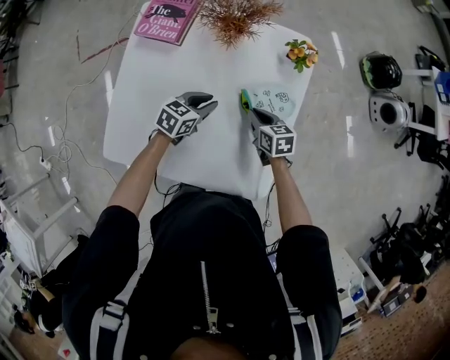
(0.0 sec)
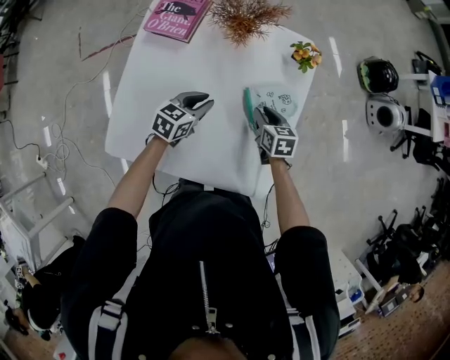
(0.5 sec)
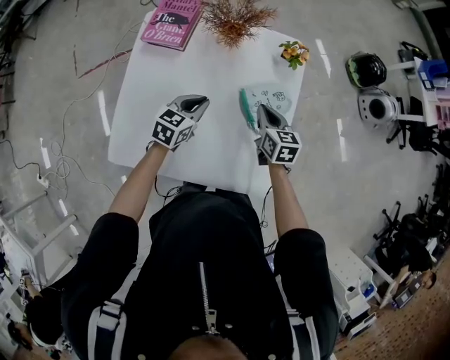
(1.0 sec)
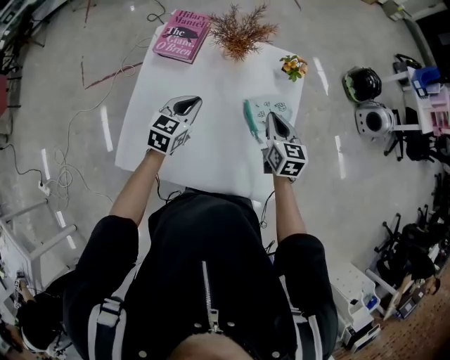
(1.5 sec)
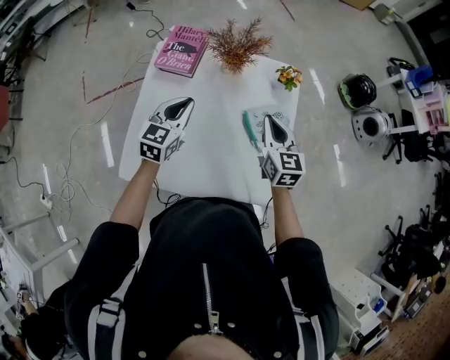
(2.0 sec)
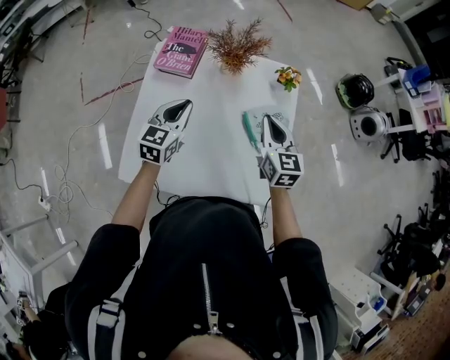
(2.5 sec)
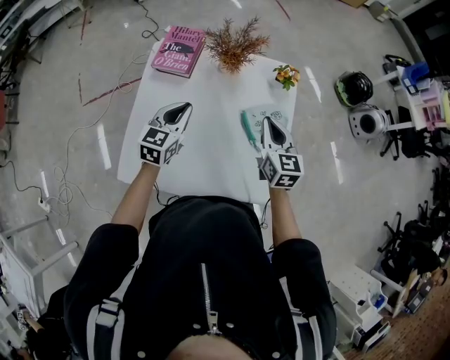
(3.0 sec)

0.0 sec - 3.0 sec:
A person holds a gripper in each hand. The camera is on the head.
0.0 sec - 1.5 sec: The right gripper is displaced upward by about 15 cm, swivels roughly 30 degrees, and opens and closes again; the left gripper is displaced upward and to the left by approximately 15 cm, and swivels some 20 degrees.
1.5 sec - 3.0 sec: The left gripper shifts by approximately 5 cm; the right gripper shifts about 5 cm upward.

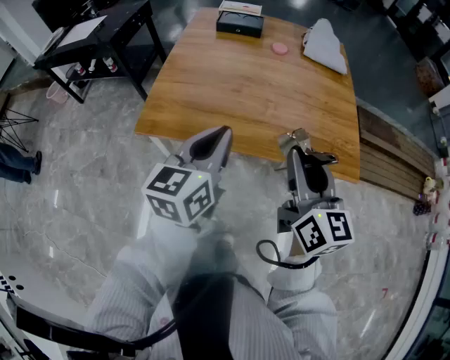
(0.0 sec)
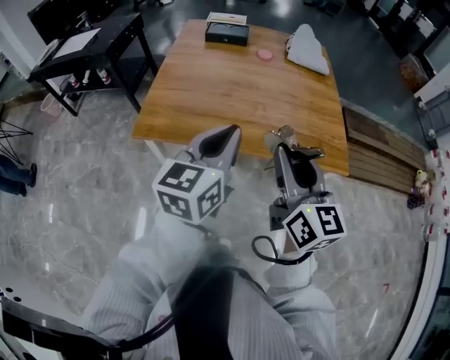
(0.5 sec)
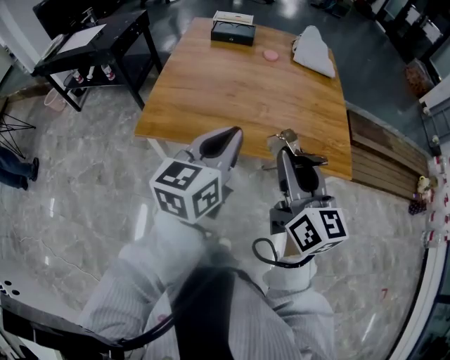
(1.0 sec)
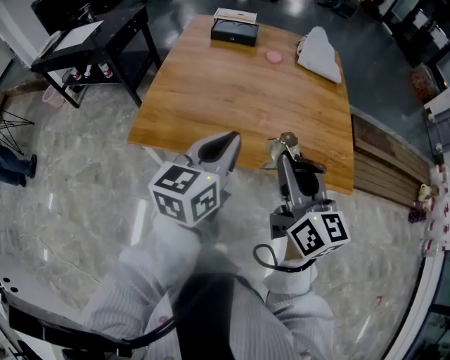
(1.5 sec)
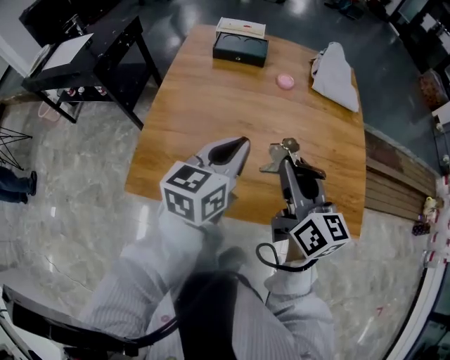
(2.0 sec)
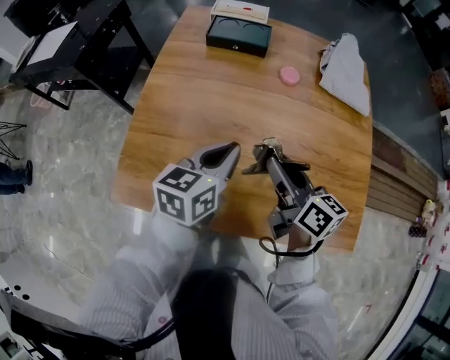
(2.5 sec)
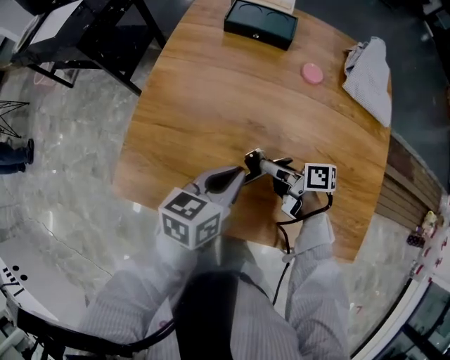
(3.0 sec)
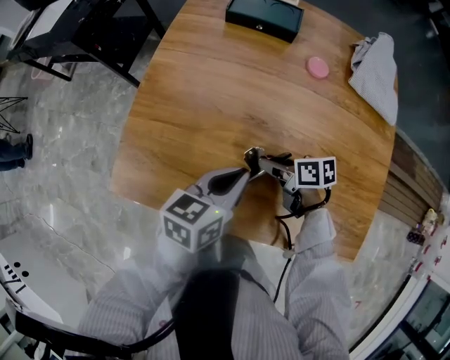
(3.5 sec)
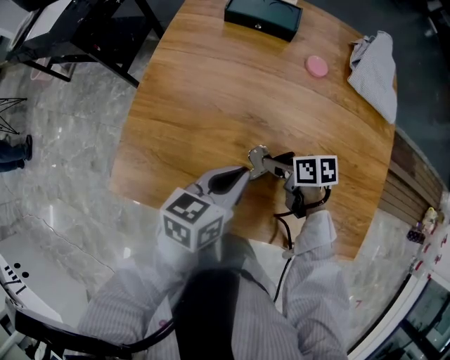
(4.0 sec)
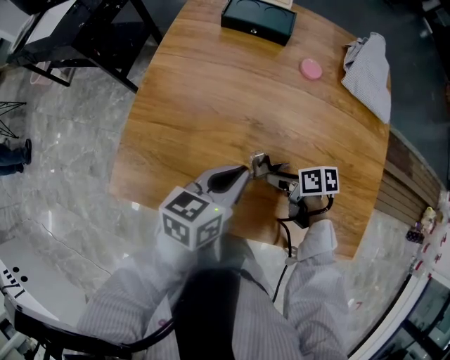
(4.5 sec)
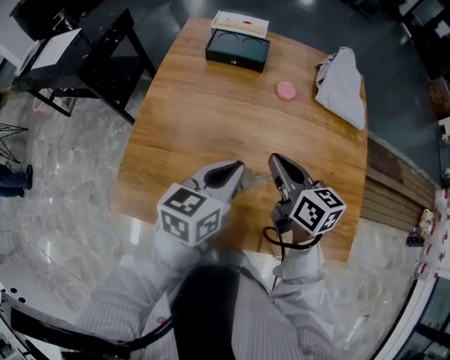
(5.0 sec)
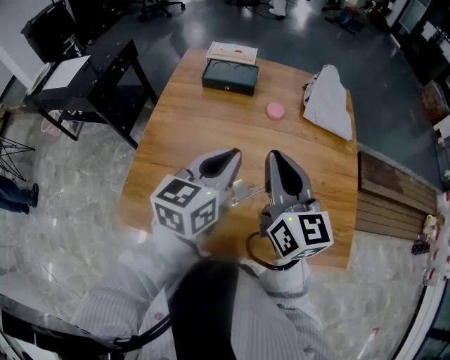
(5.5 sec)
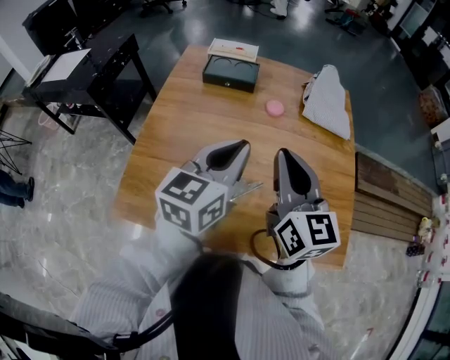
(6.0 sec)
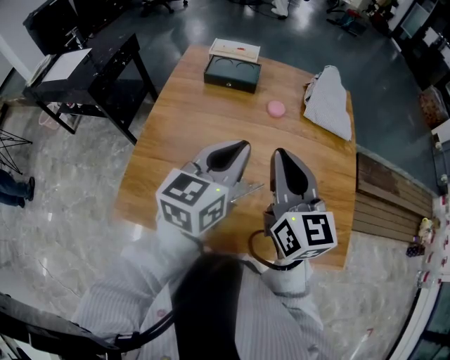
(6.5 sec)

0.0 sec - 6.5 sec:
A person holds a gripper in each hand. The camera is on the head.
0.0 sec - 2.0 sec: The grippers both shift forward by about 20 cm.
2.0 sec - 4.5 sec: The left gripper shifts some 15 cm downward, while the right gripper moves downward, roughly 30 cm, points its fingers some 40 degrees further downward, and opens up.
4.5 sec - 6.5 sec: The left gripper is displaced upward by some 20 cm, and turns by approximately 30 degrees. Meanwhile the right gripper is displaced upward by roughly 35 cm, tips its fingers upward by some 40 degrees, and closes up.

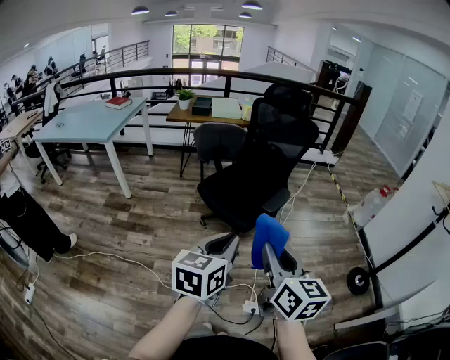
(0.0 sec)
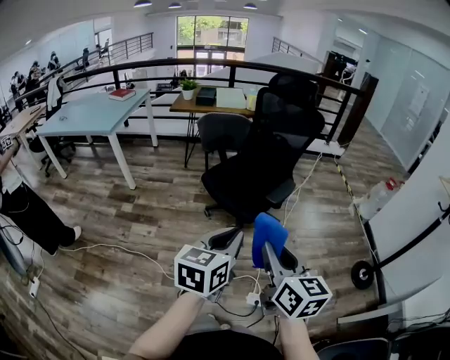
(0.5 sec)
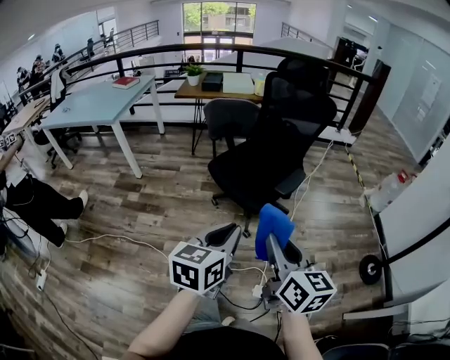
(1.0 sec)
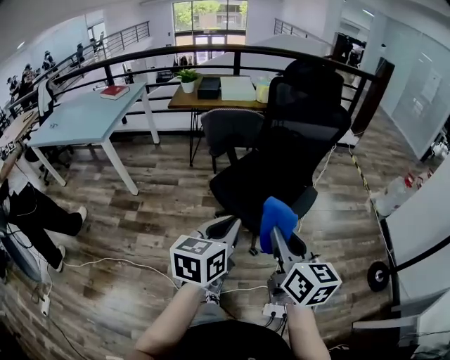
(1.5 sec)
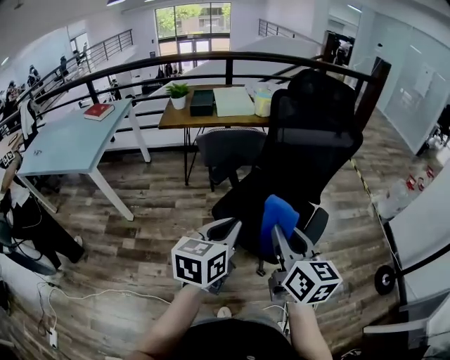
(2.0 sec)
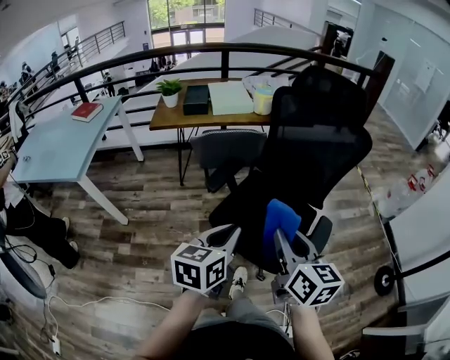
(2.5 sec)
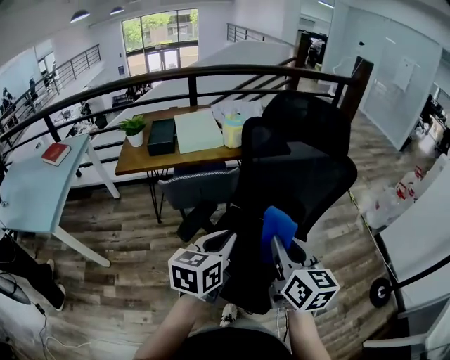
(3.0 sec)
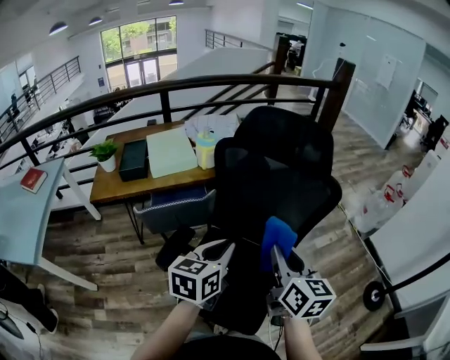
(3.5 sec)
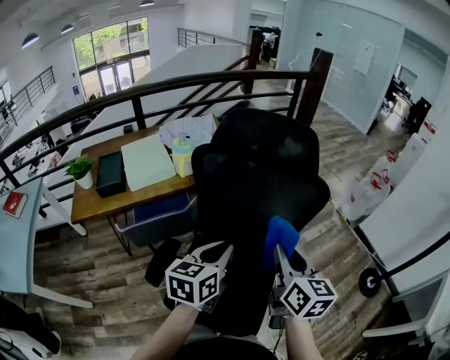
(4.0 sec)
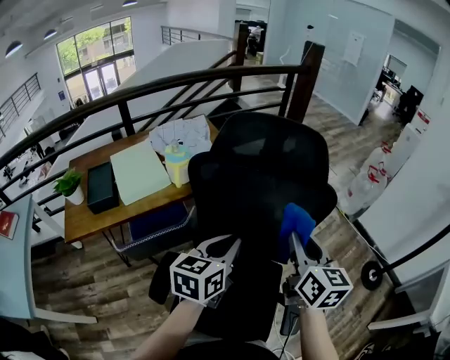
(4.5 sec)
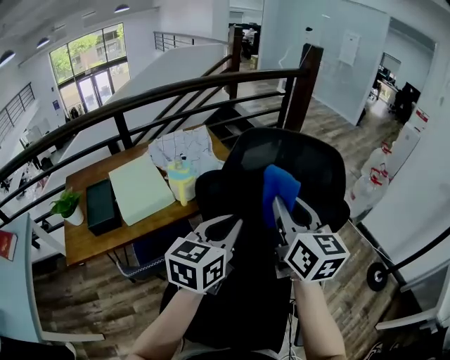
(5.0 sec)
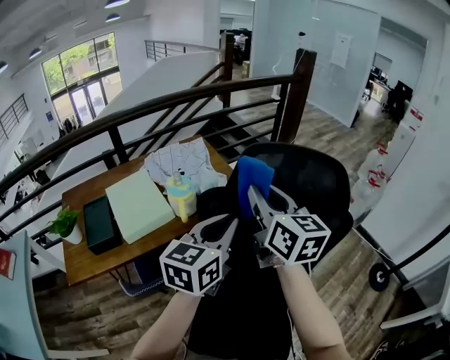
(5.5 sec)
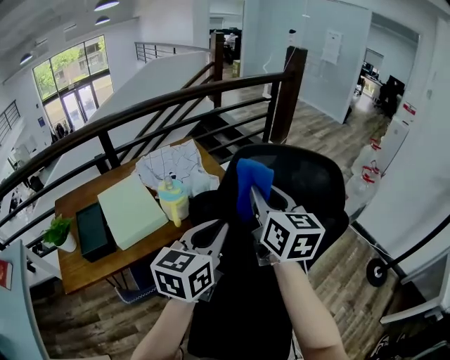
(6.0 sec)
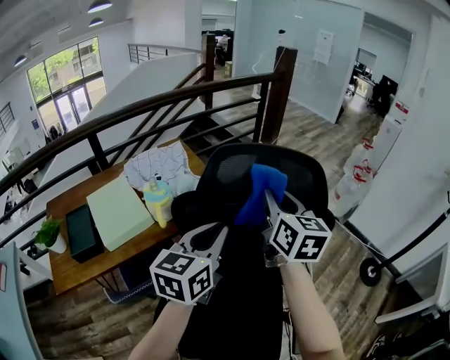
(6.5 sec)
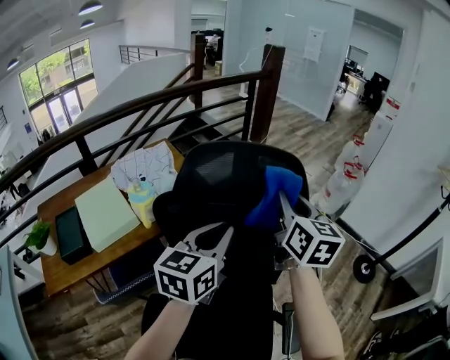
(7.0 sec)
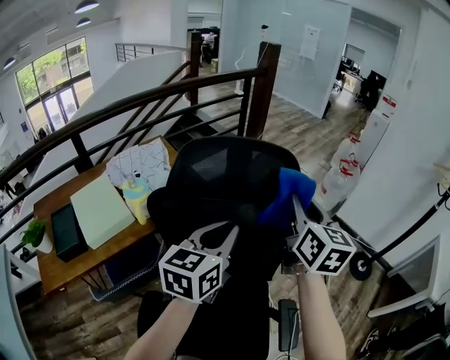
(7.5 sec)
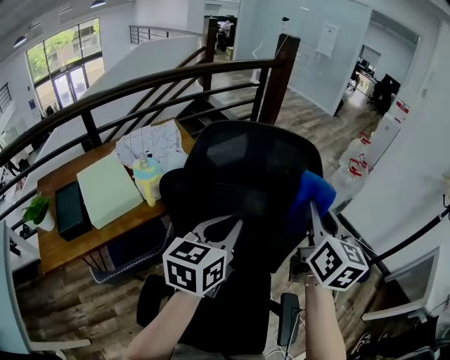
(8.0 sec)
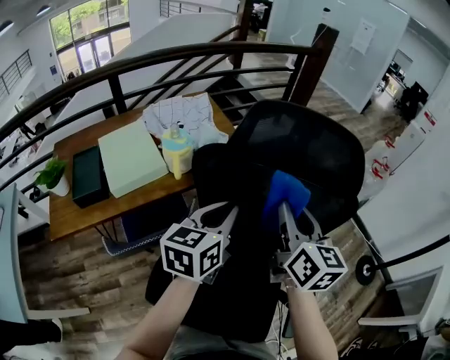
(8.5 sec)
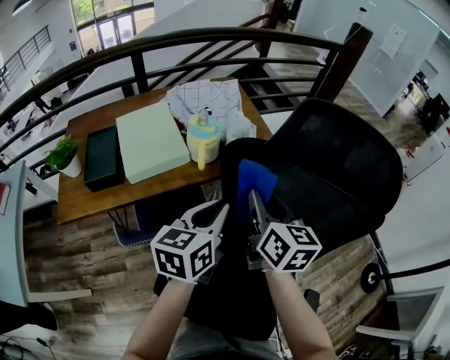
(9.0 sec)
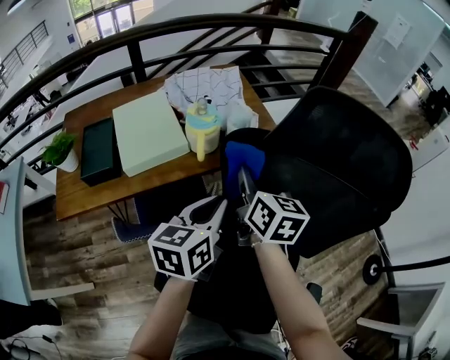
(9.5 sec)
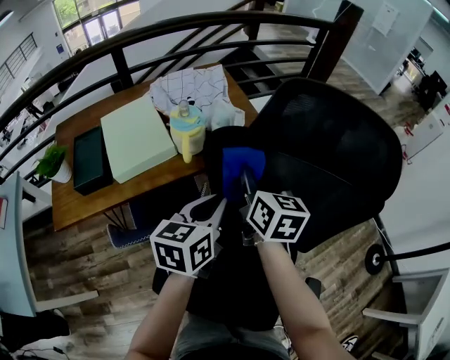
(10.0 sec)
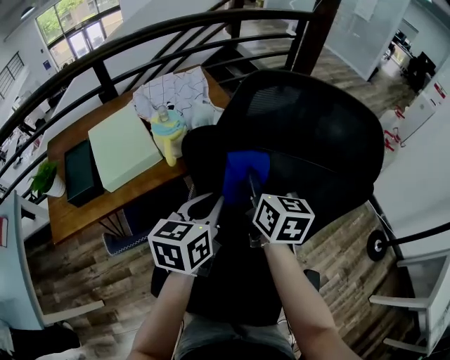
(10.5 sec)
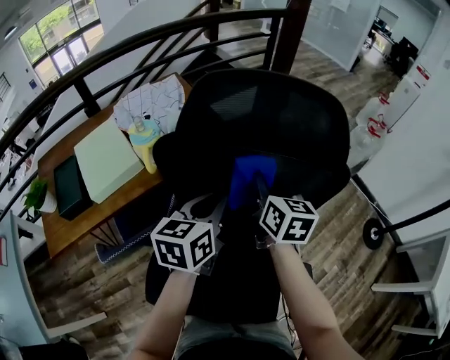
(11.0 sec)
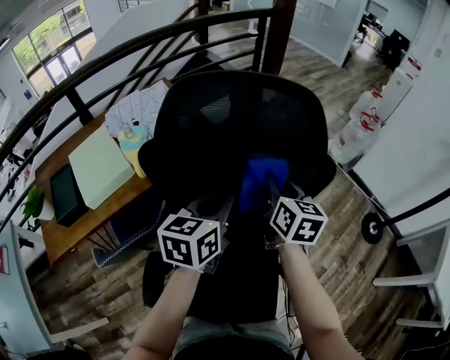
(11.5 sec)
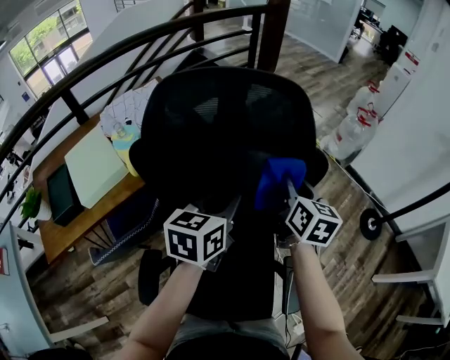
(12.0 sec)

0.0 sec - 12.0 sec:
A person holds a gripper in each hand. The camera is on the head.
0.0 sec - 2.0 sec: Both grippers travel together forward and to the left, about 35 cm.
2.0 sec - 4.0 sec: Both grippers move forward, about 40 cm. The left gripper changes its angle by about 20 degrees, while the right gripper rotates approximately 30 degrees.
4.0 sec - 6.0 sec: The grippers both shift forward, to the left and upward by about 30 cm.
6.0 sec - 8.0 sec: The right gripper goes some 20 cm to the right; the left gripper heads to the right, covering roughly 10 cm.
8.0 sec - 10.0 sec: The left gripper goes about 20 cm to the left and downward, and rotates some 20 degrees, while the right gripper shifts approximately 30 cm to the left and downward, and rotates roughly 30 degrees.
10.0 sec - 12.0 sec: The left gripper is displaced to the right by roughly 20 cm, while the right gripper goes approximately 30 cm to the right, and swivels some 20 degrees.

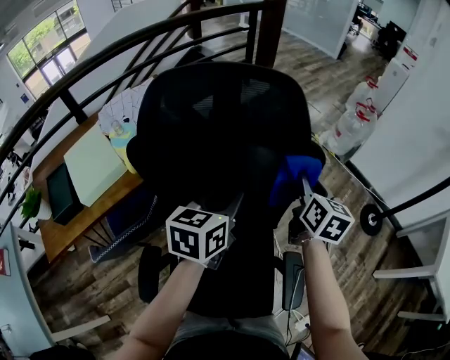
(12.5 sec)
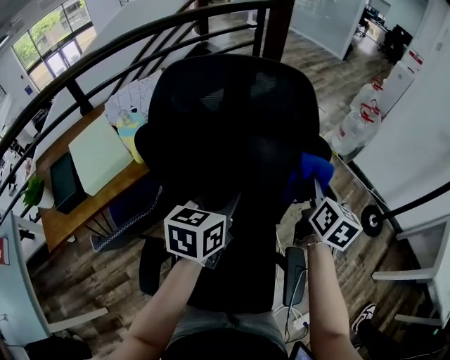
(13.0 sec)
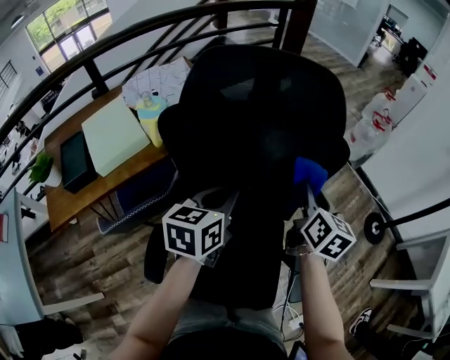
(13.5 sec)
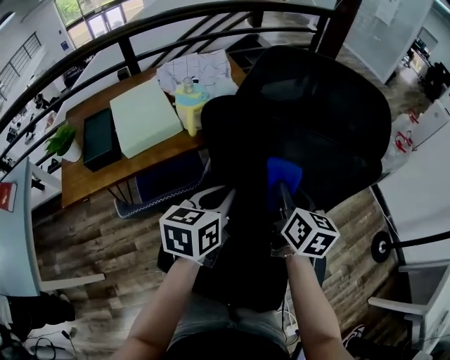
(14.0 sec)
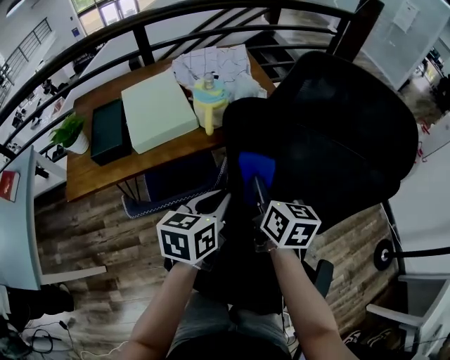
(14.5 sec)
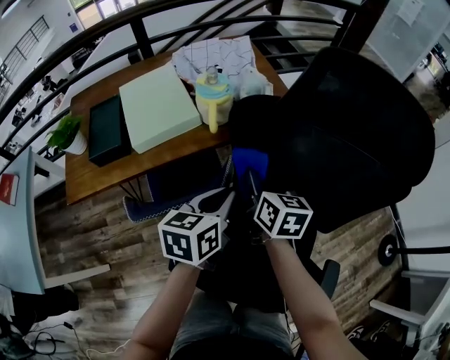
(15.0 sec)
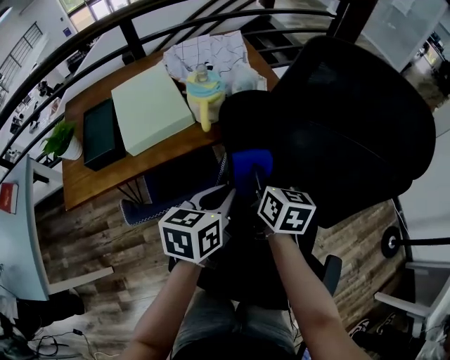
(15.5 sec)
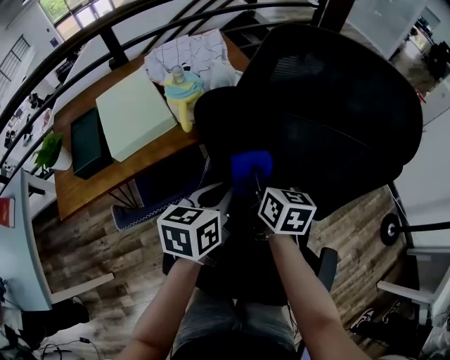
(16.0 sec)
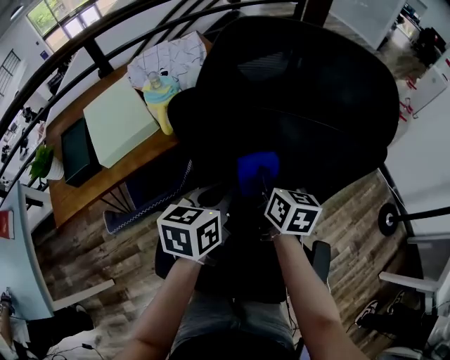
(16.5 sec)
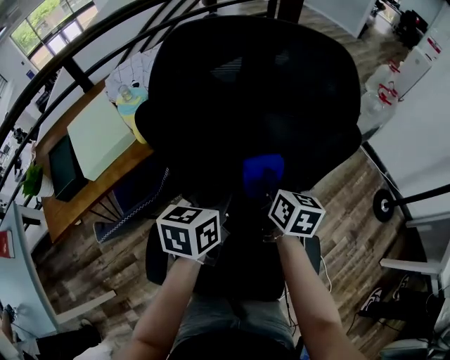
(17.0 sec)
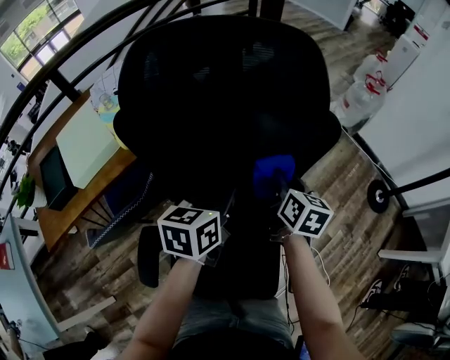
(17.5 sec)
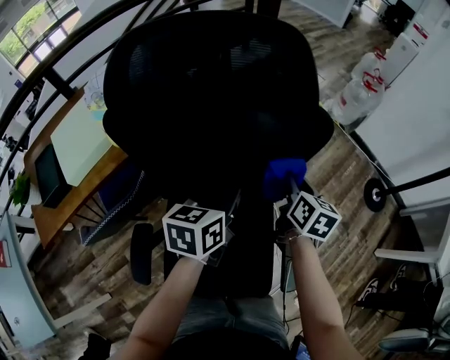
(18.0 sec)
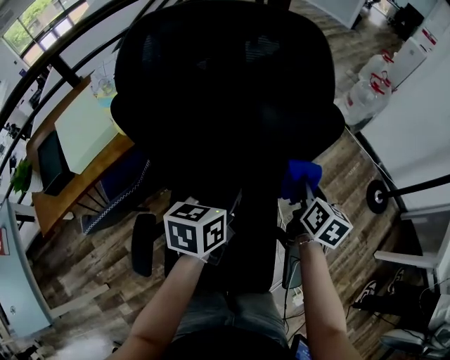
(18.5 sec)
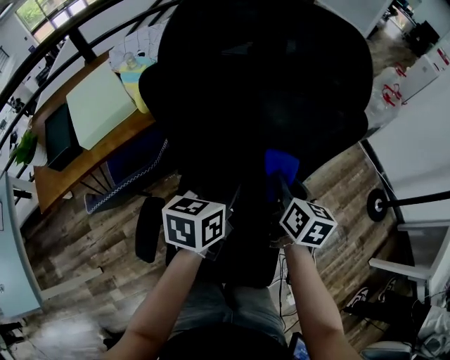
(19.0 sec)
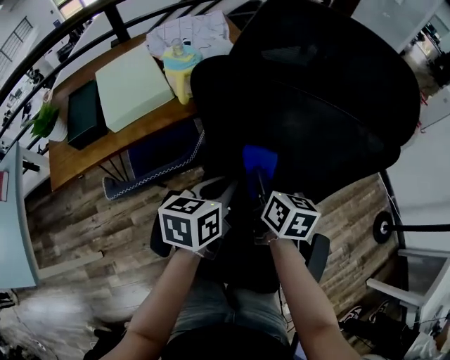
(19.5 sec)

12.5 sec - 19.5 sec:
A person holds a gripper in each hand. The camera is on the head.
12.5 sec - 14.5 sec: The right gripper ends up some 35 cm from where it was, and turns by about 30 degrees. The left gripper ends up approximately 25 cm from where it was, and rotates some 20 degrees.
14.5 sec - 16.0 sec: The right gripper moves downward, roughly 5 cm. The left gripper ends up about 5 cm from where it was.
16.0 sec - 17.5 sec: The grippers both shift to the right by about 20 cm. The right gripper swivels some 20 degrees.
17.5 sec - 19.5 sec: The left gripper travels to the left and backward by roughly 15 cm. Meanwhile the right gripper shifts roughly 20 cm to the left, and swivels about 20 degrees.
